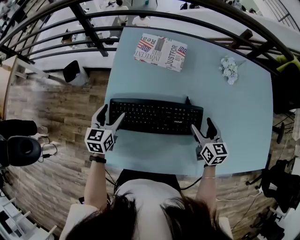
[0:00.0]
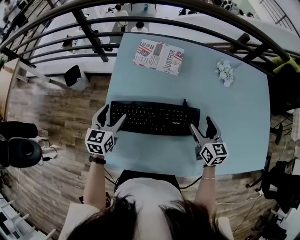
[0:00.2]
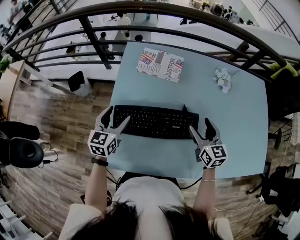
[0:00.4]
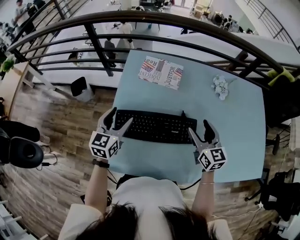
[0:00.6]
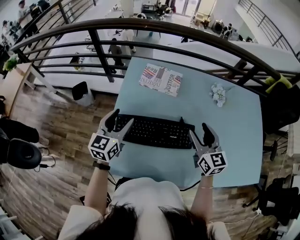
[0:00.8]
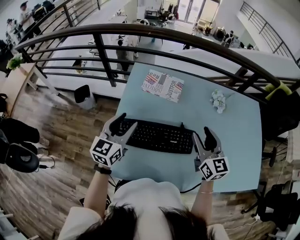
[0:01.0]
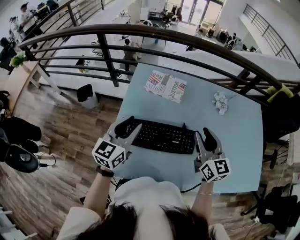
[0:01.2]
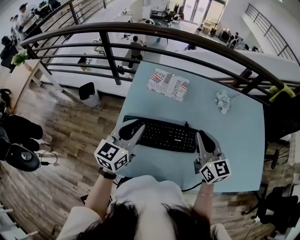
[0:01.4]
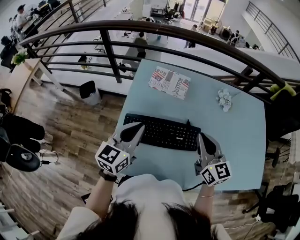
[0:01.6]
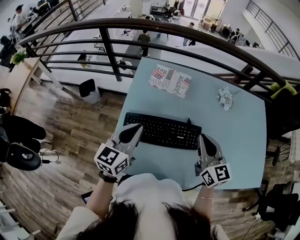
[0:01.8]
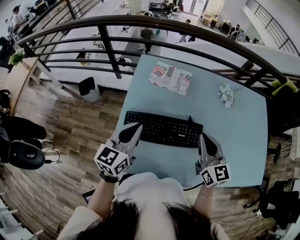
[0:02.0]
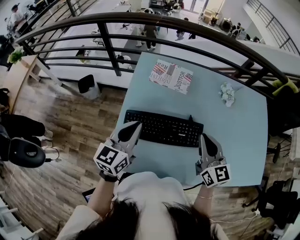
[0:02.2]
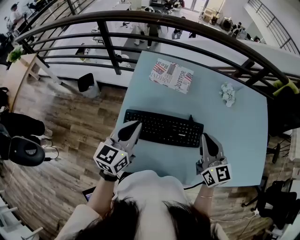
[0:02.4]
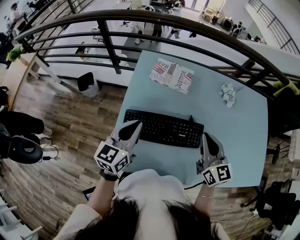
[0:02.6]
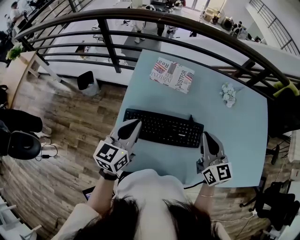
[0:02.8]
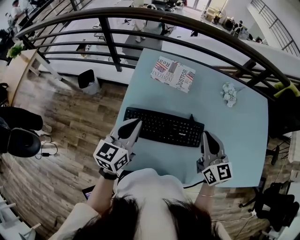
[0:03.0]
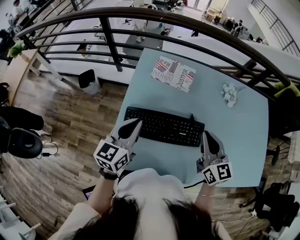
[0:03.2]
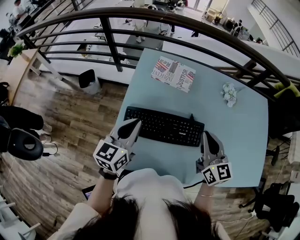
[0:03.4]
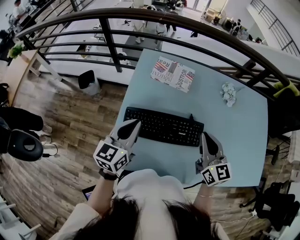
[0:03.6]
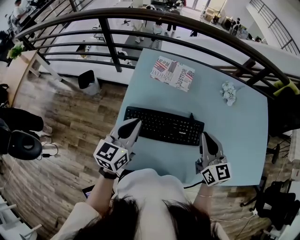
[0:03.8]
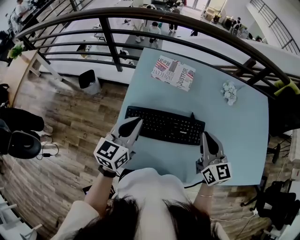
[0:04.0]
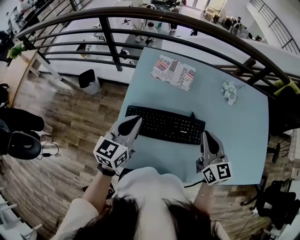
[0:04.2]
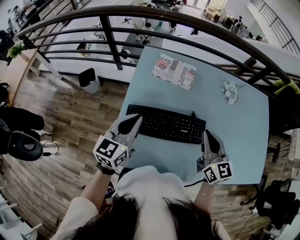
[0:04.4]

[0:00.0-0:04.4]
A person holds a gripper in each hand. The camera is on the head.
0:00.0 to 0:01.4: The right gripper travels upward by approximately 20 cm, changes its angle by about 20 degrees, and closes up. The left gripper shifts roughly 20 cm upward and to the right, turns by some 20 degrees, and closes up.
0:01.4 to 0:03.0: The grippers make only small movements.
0:03.0 to 0:04.4: The two grippers keep their place.

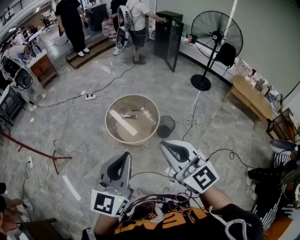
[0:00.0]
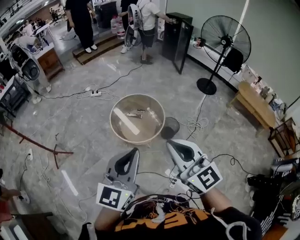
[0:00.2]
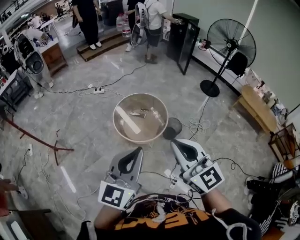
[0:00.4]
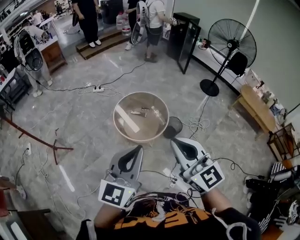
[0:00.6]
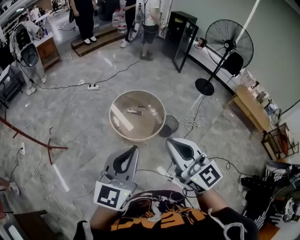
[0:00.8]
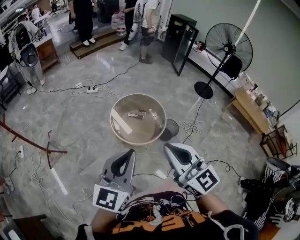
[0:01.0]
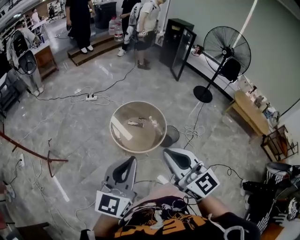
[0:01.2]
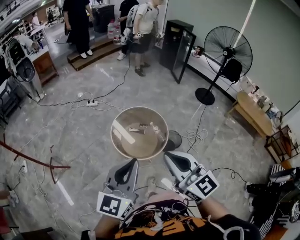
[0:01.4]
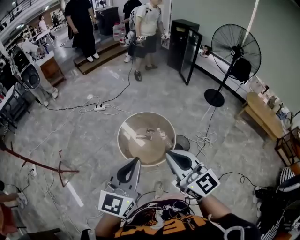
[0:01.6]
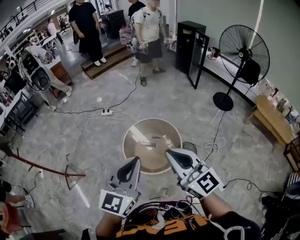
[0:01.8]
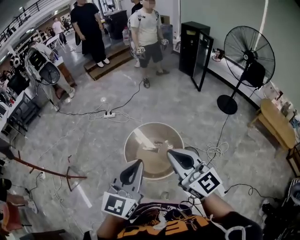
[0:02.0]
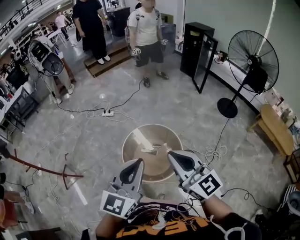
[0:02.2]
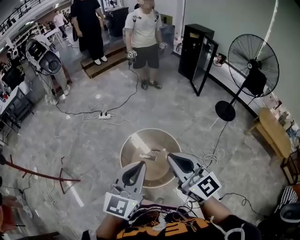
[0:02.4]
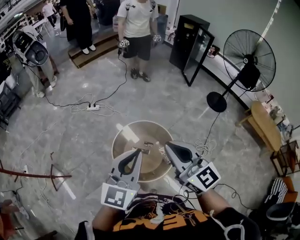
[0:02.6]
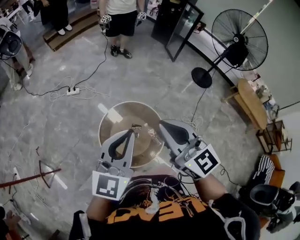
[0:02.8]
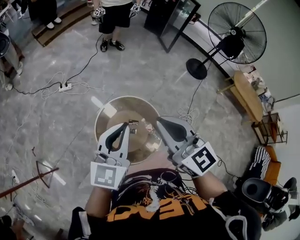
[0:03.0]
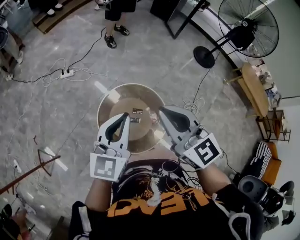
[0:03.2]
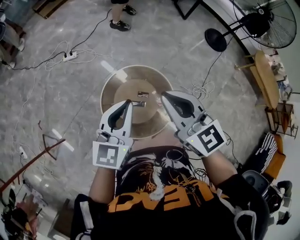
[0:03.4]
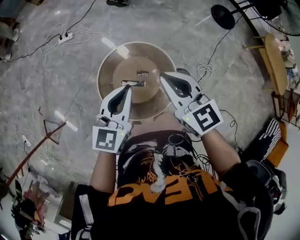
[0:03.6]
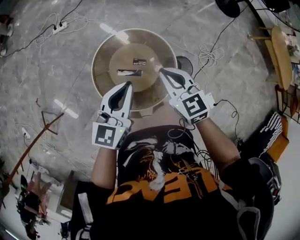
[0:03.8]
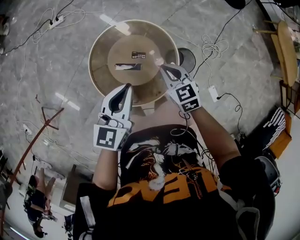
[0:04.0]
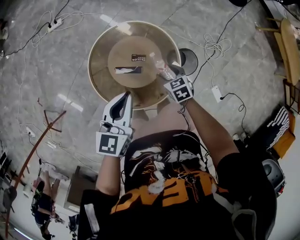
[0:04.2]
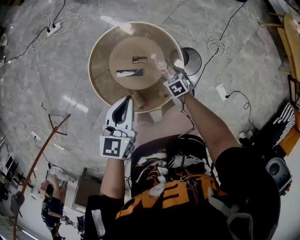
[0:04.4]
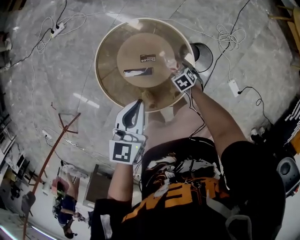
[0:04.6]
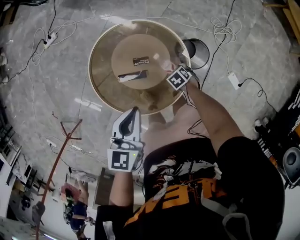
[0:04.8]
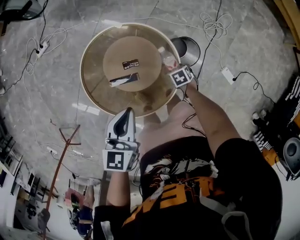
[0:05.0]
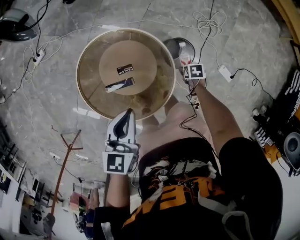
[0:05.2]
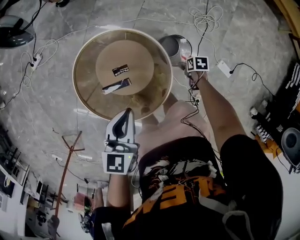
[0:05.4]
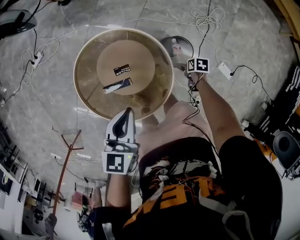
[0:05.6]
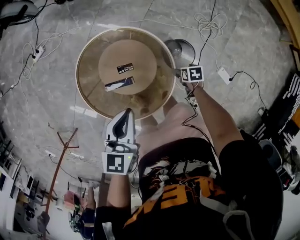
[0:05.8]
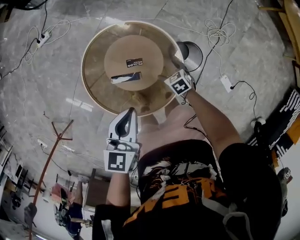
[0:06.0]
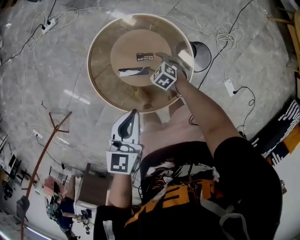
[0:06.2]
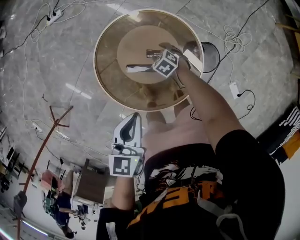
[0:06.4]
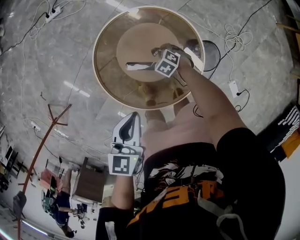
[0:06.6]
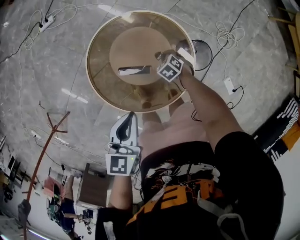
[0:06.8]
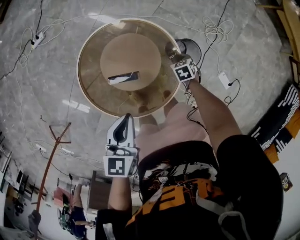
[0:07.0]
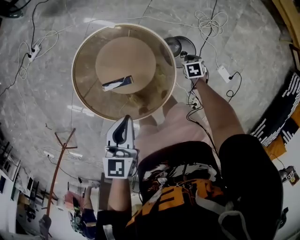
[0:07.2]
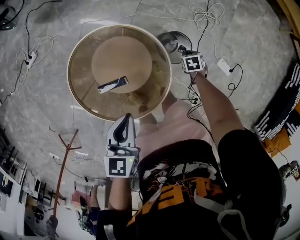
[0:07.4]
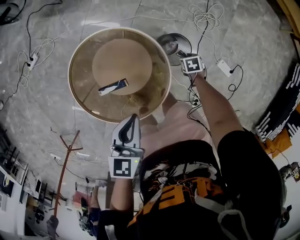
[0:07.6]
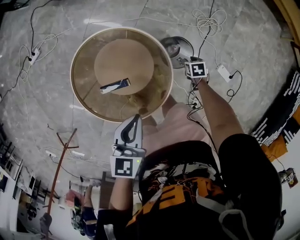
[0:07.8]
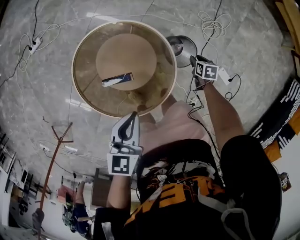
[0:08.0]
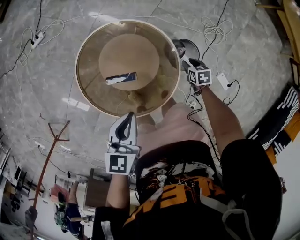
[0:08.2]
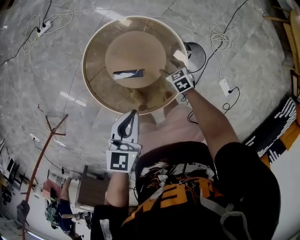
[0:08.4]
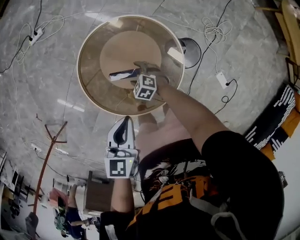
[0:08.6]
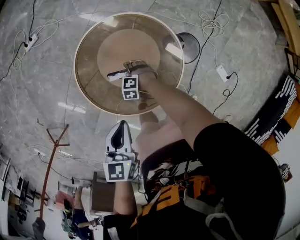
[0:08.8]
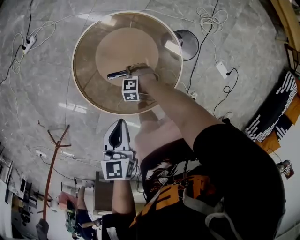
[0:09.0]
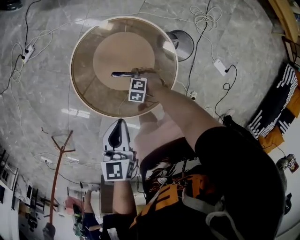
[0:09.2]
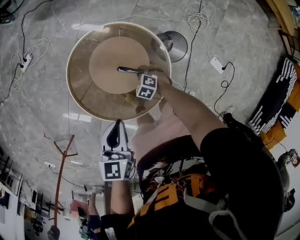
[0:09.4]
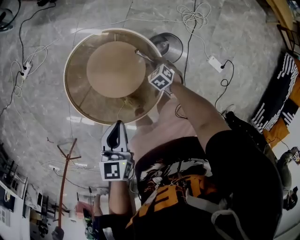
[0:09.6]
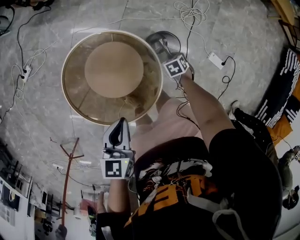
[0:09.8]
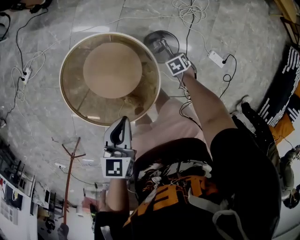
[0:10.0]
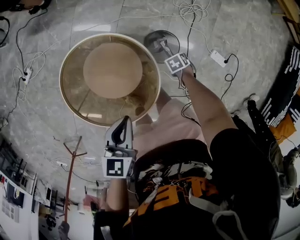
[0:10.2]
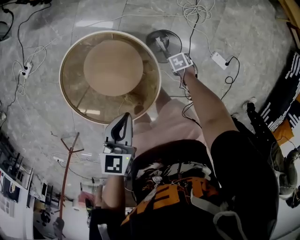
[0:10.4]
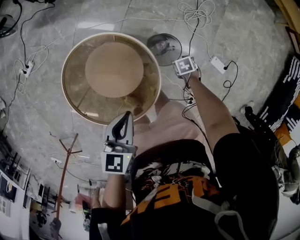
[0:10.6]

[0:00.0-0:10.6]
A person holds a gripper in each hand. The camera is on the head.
0:00.0 to 0:01.6: The grippers both shift forward by some 20 cm.
0:01.6 to 0:03.0: The two grippers go about 40 cm forward.
0:03.0 to 0:04.6: The left gripper moves downward, approximately 35 cm, and turns by roughly 30 degrees. The right gripper heads downward, covering approximately 70 cm, points its fingers some 70 degrees further downward, and opens.
0:06.0 to 0:07.6: The right gripper moves about 25 cm, changes its angle by approximately 40 degrees, and closes; the left gripper moves about 10 cm.
0:07.6 to 0:09.0: The left gripper changes place by some 20 cm, while the right gripper shifts by roughly 40 cm, rotates around the line of its fingers by approximately 80 degrees, counterclockwise from behind, and opens, then closes once more.
0:09.0 to 0:10.6: The left gripper ends up about 20 cm from where it was. The right gripper shifts by some 40 cm, and rotates around the line of its fingers by some 80 degrees, clockwise from behind.

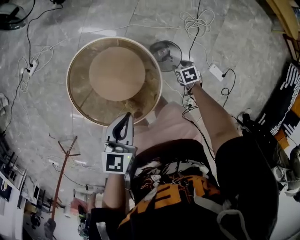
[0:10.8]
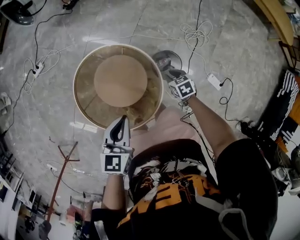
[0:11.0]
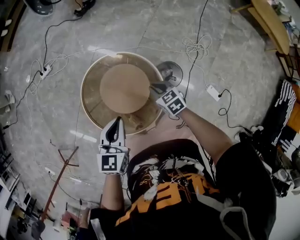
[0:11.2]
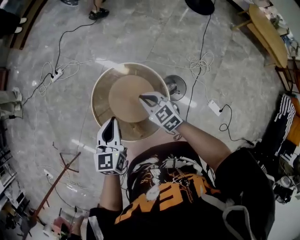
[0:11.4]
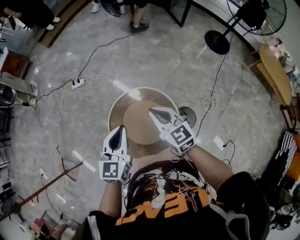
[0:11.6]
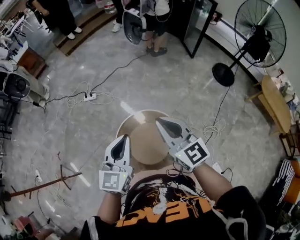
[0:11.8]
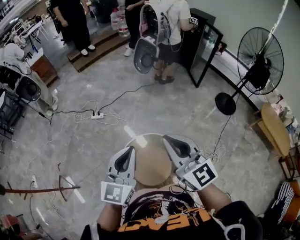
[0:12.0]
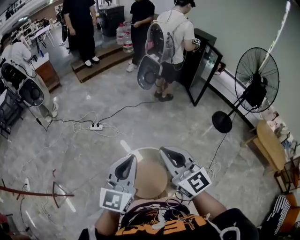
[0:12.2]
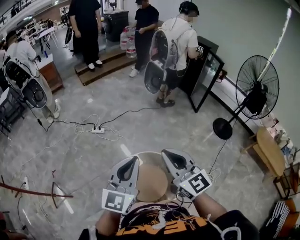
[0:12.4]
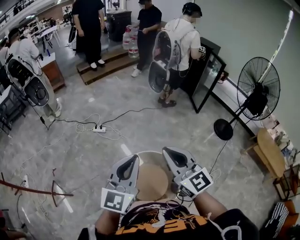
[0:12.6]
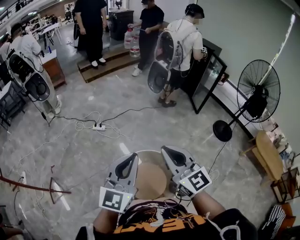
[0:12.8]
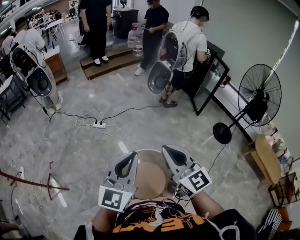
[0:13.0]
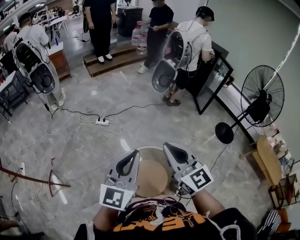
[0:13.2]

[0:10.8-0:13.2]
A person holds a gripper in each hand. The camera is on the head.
0:10.8 to 0:12.0: The left gripper is displaced upward by about 40 cm, and tips its fingers upward by some 40 degrees; the right gripper is displaced upward by approximately 80 cm, tilts its fingers about 80 degrees upward, and closes its fingers.
0:12.0 to 0:13.2: The left gripper moves to the left and upward, approximately 10 cm; the right gripper shifts roughly 10 cm to the left.

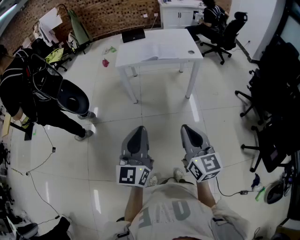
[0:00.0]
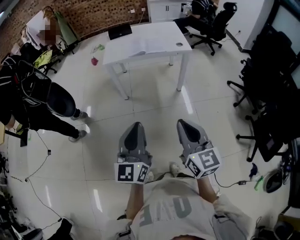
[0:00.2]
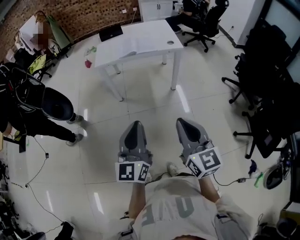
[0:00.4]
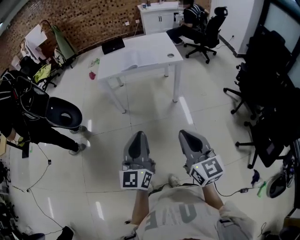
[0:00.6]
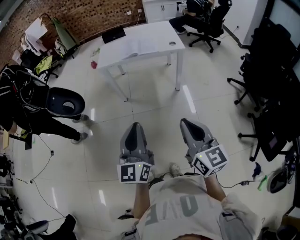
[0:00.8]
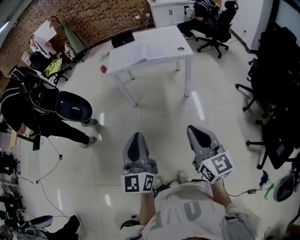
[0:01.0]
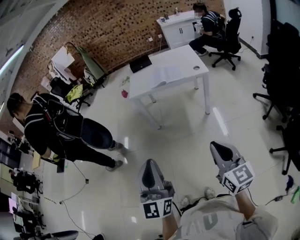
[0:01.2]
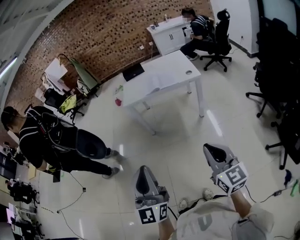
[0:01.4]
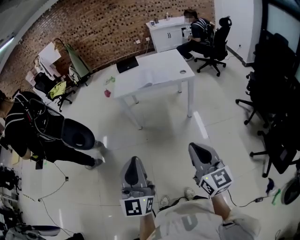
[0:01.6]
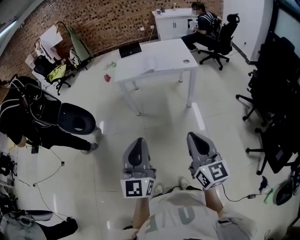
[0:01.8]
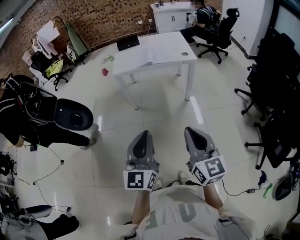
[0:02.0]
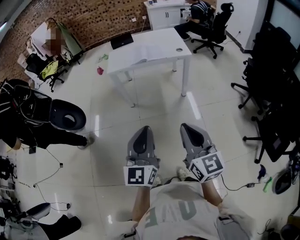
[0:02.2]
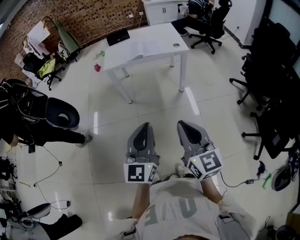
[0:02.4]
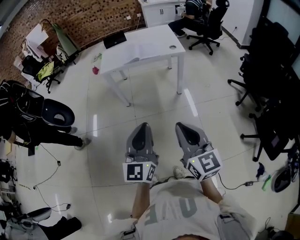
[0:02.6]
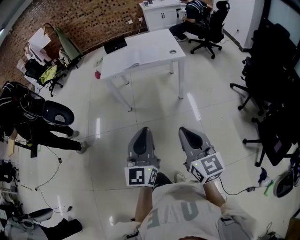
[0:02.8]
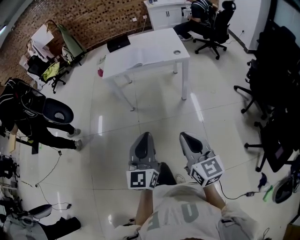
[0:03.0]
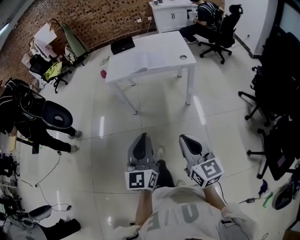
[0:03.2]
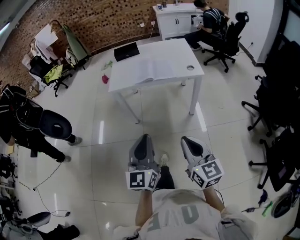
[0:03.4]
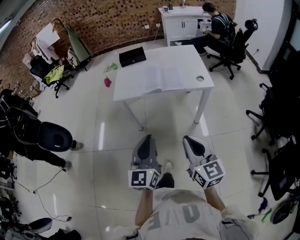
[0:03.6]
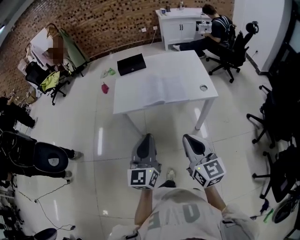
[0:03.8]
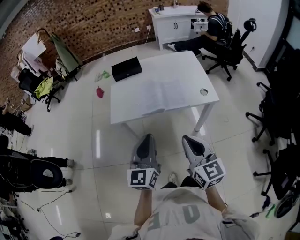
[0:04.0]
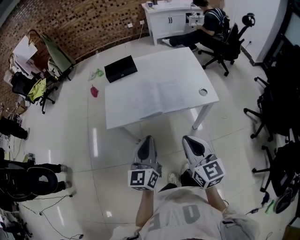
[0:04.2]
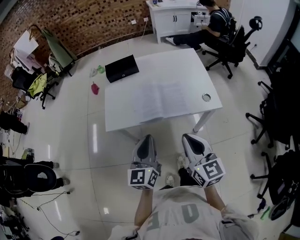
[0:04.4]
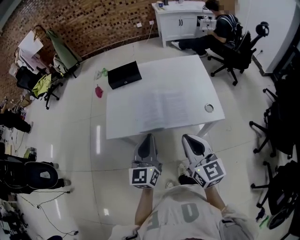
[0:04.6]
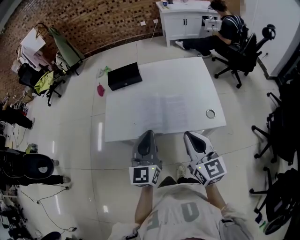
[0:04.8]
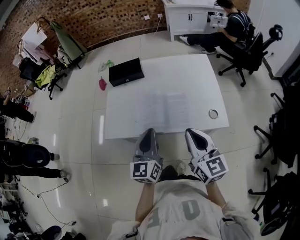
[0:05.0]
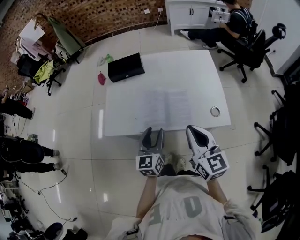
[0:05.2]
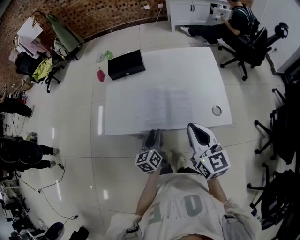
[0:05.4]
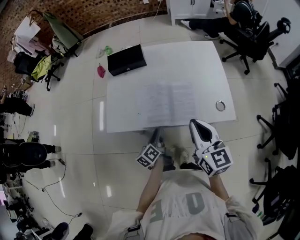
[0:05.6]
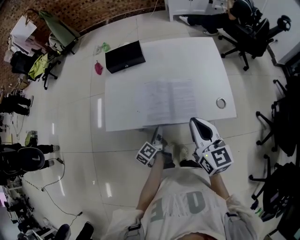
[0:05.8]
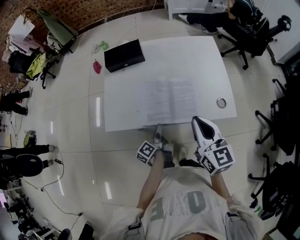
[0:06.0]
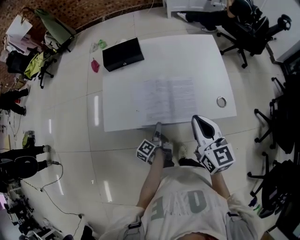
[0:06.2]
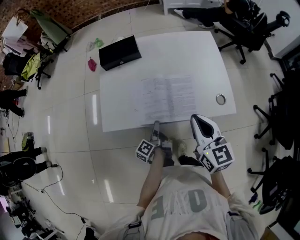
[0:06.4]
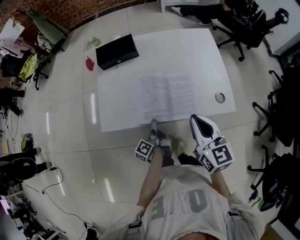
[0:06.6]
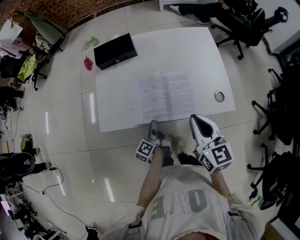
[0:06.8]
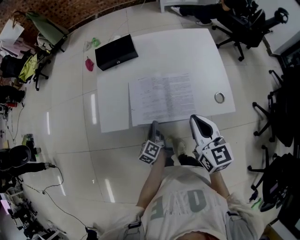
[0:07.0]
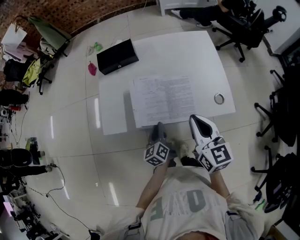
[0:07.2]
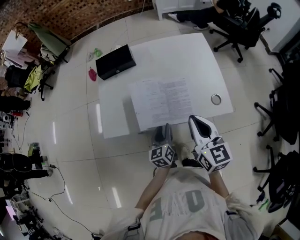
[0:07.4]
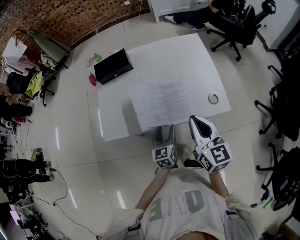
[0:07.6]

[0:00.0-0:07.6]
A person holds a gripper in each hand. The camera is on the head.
0:00.0 to 0:01.6: The left gripper moves upward, some 5 cm, and moves about 10 cm to the right and comes back; the right gripper shifts about 5 cm to the right.
0:01.6 to 0:03.0: The right gripper shifts roughly 5 cm downward. Meanwhile the left gripper heads to the right, downward and forward, covering some 15 cm.
0:03.0 to 0:04.6: The pair of grippers is taken forward, about 60 cm.
0:04.6 to 0:06.0: The right gripper heads forward, covering approximately 10 cm, while the left gripper is displaced downward by some 25 cm, twists approximately 70 degrees counterclockwise, seen from behind, and opens.
0:06.0 to 0:07.6: The left gripper travels to the right and upward by about 10 cm, rotates around the line of its fingers by some 60 degrees, clockwise from behind, and closes and opens again.
